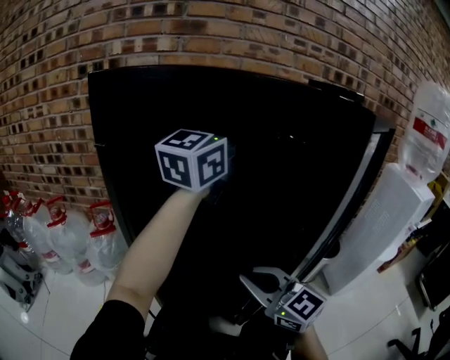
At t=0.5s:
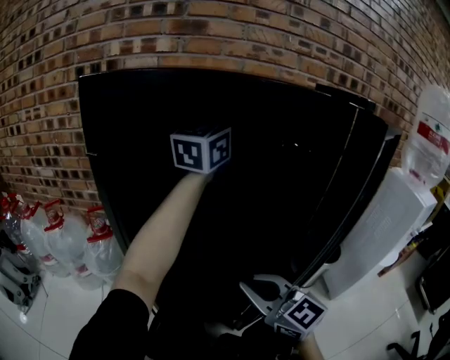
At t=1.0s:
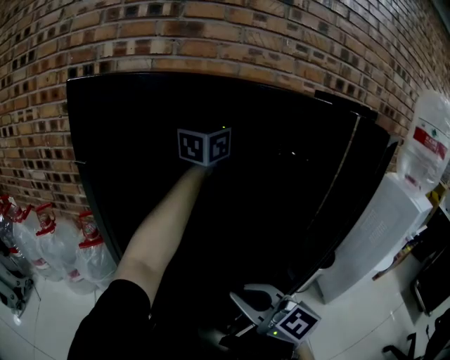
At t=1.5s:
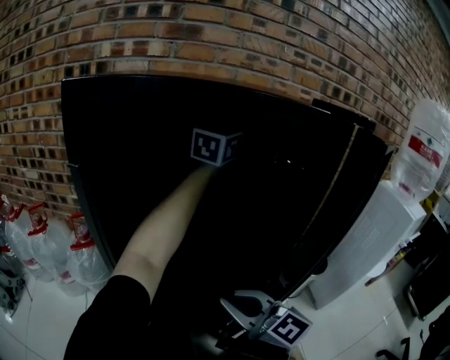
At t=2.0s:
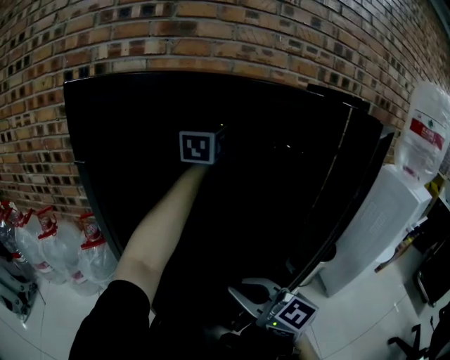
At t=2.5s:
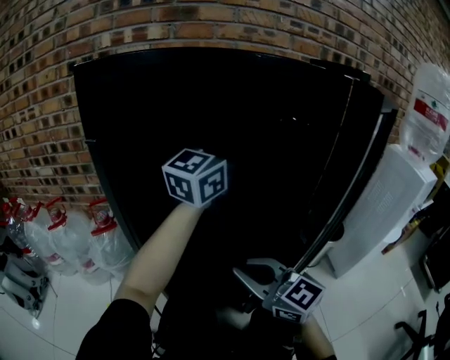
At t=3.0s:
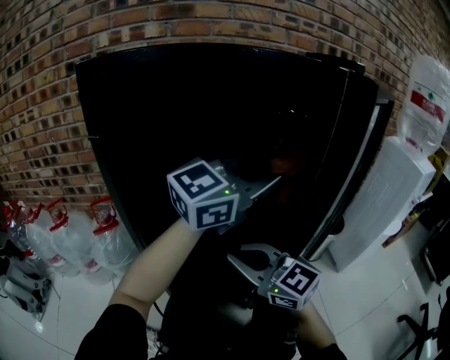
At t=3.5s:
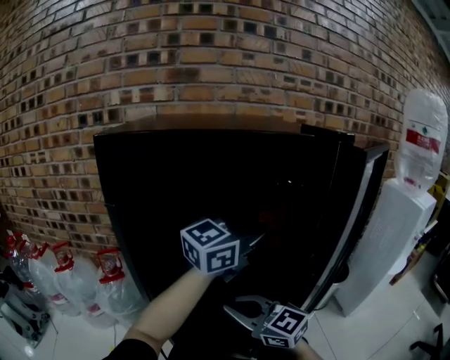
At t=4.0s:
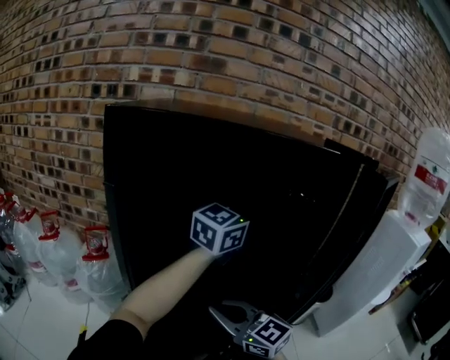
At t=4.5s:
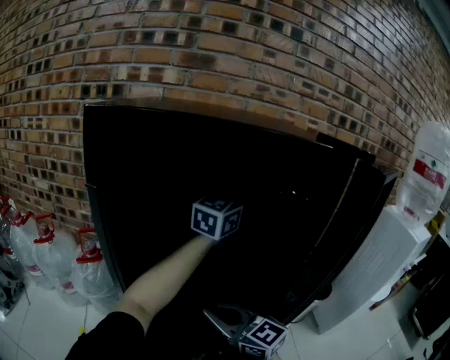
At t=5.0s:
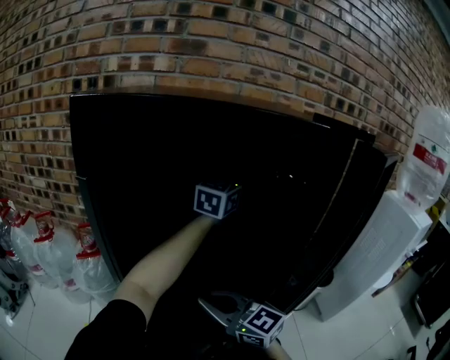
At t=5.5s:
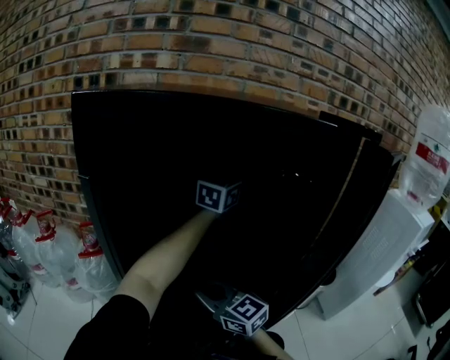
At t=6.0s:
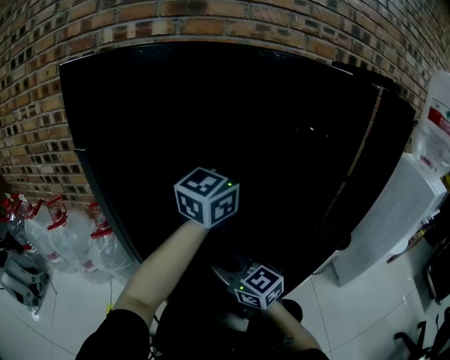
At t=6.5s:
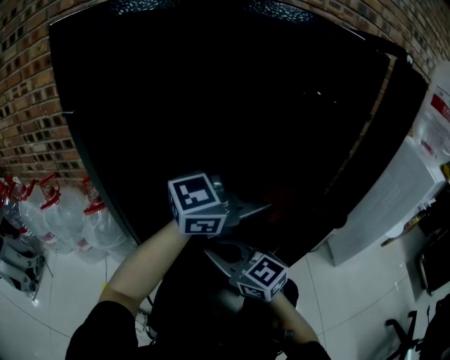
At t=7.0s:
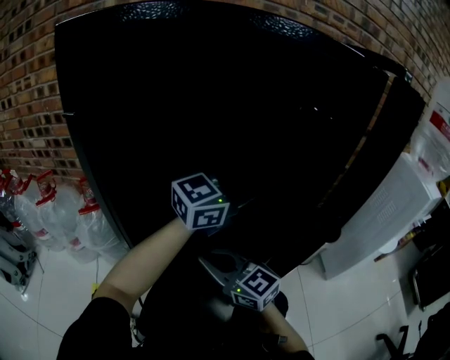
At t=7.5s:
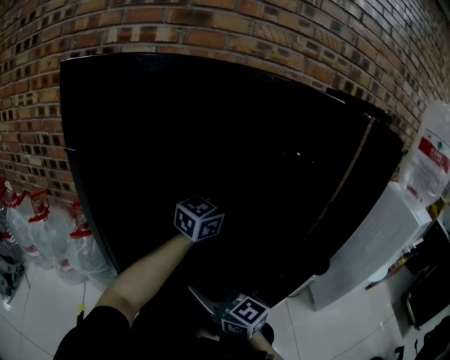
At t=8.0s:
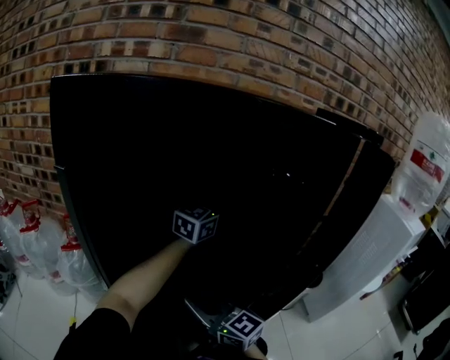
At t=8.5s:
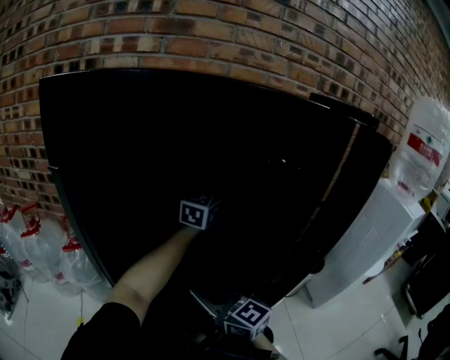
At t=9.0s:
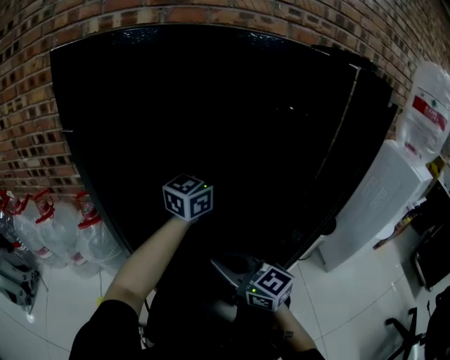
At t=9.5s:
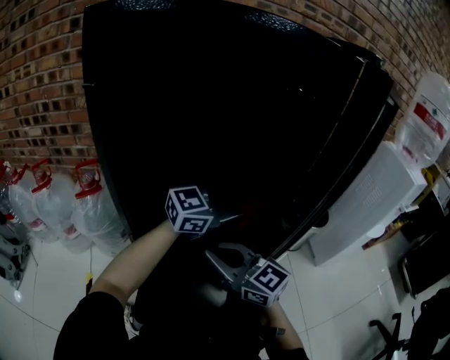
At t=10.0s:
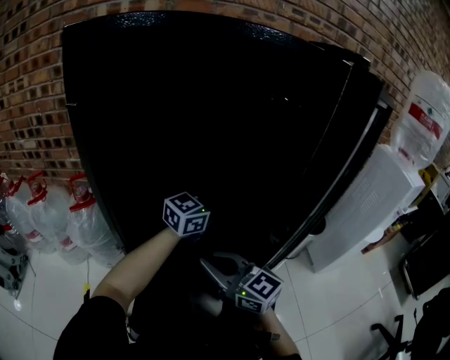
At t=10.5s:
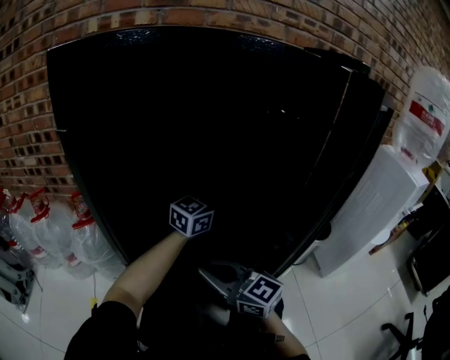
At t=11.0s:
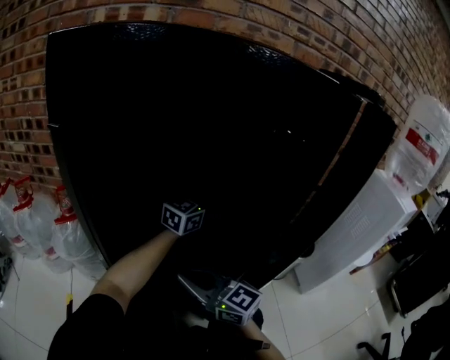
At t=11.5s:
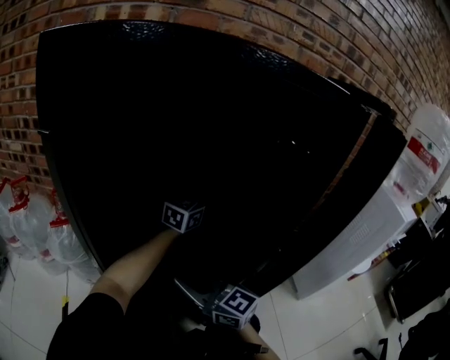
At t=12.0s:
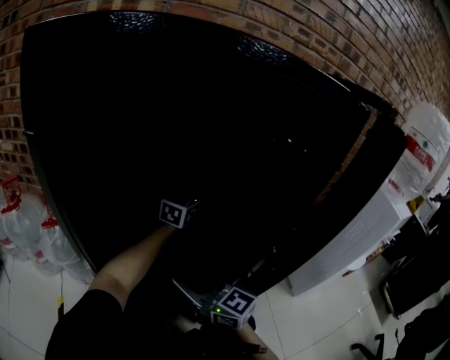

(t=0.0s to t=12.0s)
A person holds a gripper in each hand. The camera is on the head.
t=0.0s - t=2.0s: The left gripper travels forward by approximately 15 cm.
t=2.0s - t=4.0s: The right gripper moves some 5 cm; the left gripper shifts roughly 15 cm backward, downward and to the right, and swivels approximately 30 degrees.
t=4.0s - t=6.0s: The left gripper reaches roughly 15 cm forward, then returns. Meanwhile the right gripper travels forward by roughly 5 cm.
t=6.0s - t=8.0s: The left gripper ends up some 15 cm from where it was.
t=8.0s - t=10.0s: The left gripper moves roughly 20 cm. The right gripper shifts by some 5 cm.
t=10.0s - t=12.0s: The right gripper moves forward, about 5 cm, while the left gripper heads forward, covering about 20 cm, and rotates roughly 30 degrees.

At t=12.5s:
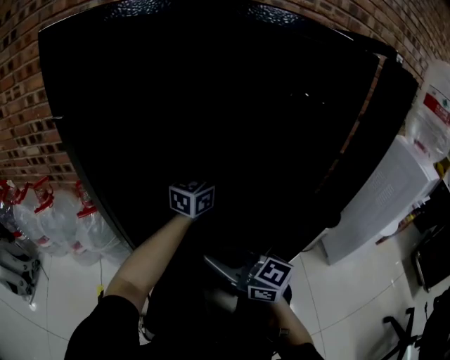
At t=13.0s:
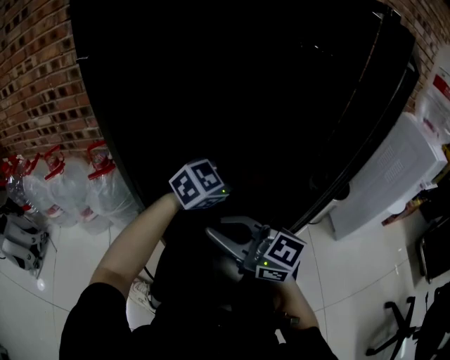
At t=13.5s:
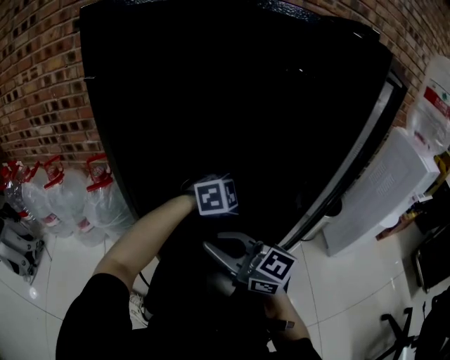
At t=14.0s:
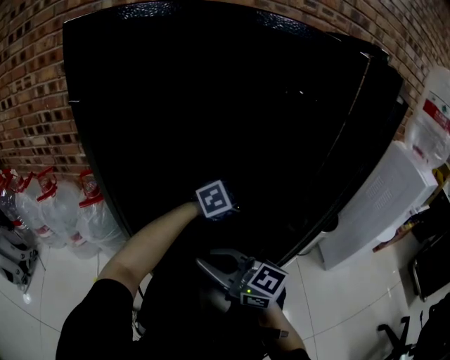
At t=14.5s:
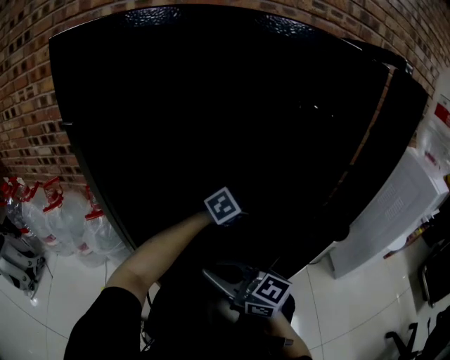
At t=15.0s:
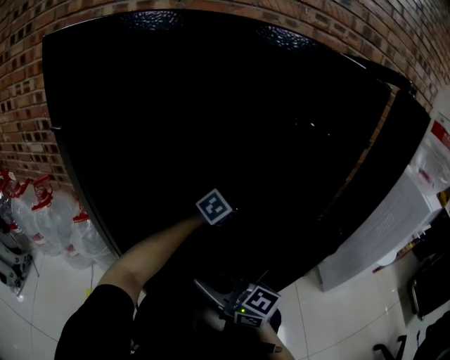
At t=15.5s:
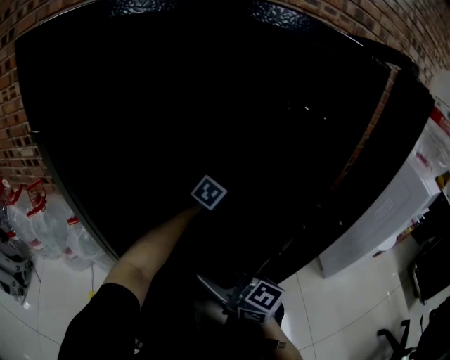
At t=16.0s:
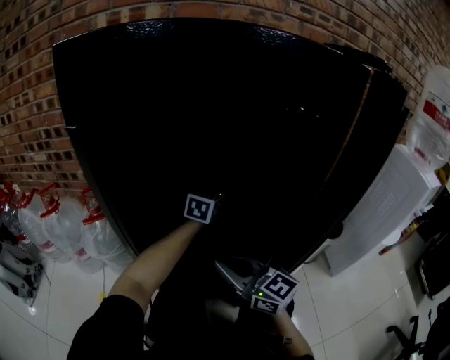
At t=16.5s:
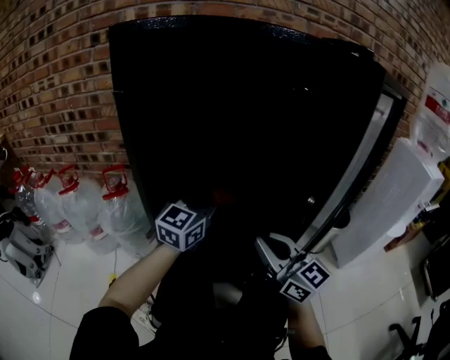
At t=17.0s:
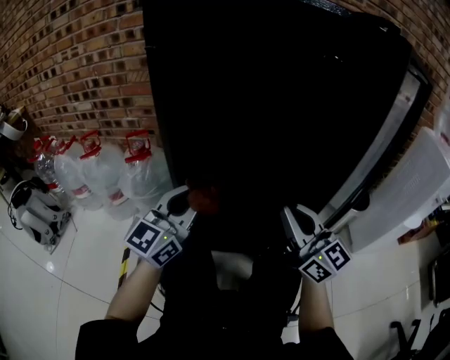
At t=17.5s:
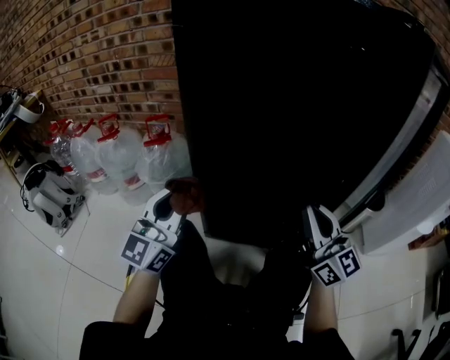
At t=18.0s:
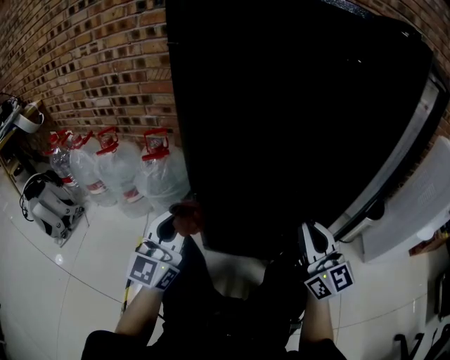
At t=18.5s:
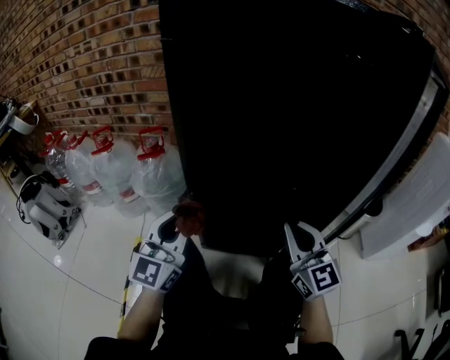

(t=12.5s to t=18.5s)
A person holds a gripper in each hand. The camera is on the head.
t=12.5s - t=14.5s: The left gripper shifts roughly 10 cm downward, and tilts its fingers approximately 40 degrees downward.
t=14.5s - t=16.5s: The left gripper moves to the left, backward and upward, approximately 20 cm, and tilts its fingers approximately 40 degrees upward. Meanwhile the right gripper goes approximately 10 cm to the right, and rotates about 20 degrees.
t=16.5s - t=18.5s: The right gripper changes place by about 5 cm. The left gripper travels to the left and backward by approximately 25 cm, and turns by some 20 degrees.

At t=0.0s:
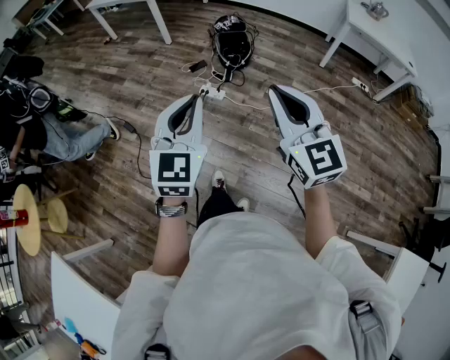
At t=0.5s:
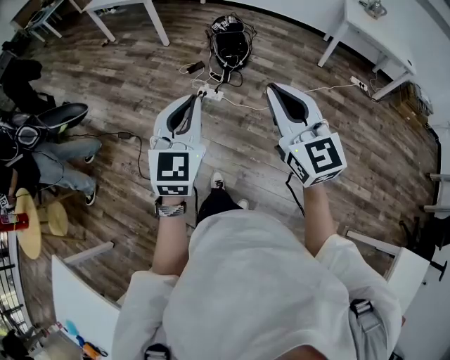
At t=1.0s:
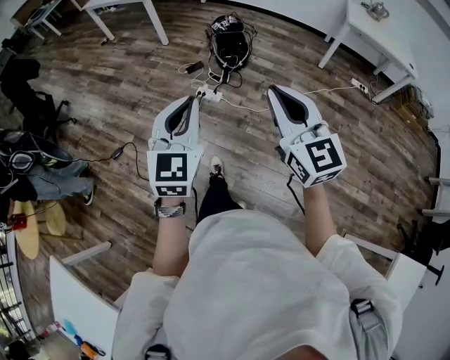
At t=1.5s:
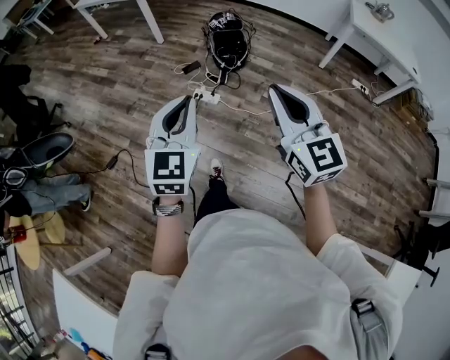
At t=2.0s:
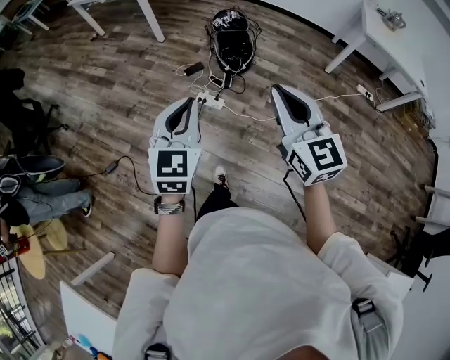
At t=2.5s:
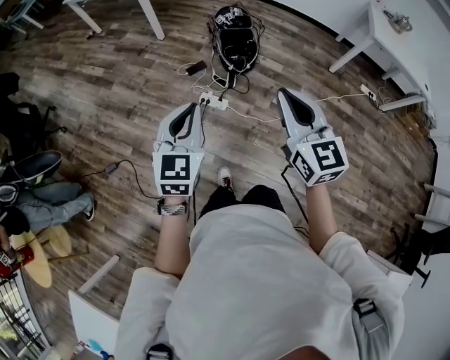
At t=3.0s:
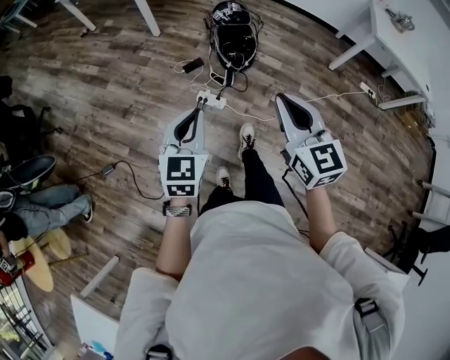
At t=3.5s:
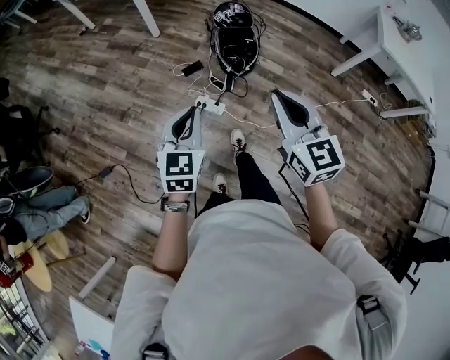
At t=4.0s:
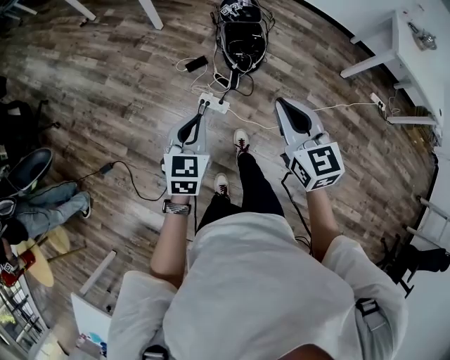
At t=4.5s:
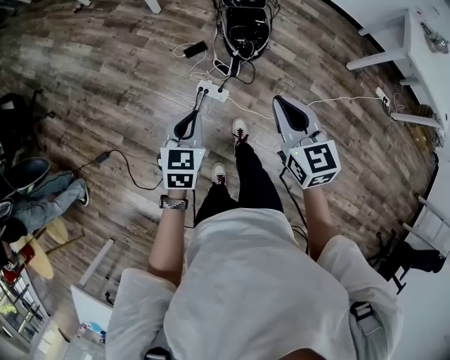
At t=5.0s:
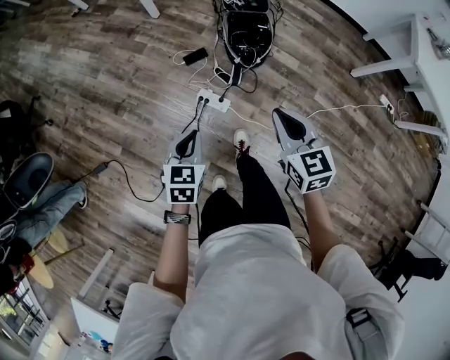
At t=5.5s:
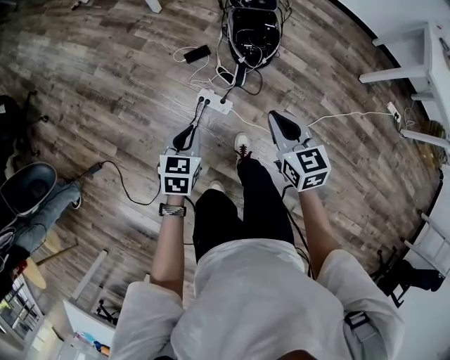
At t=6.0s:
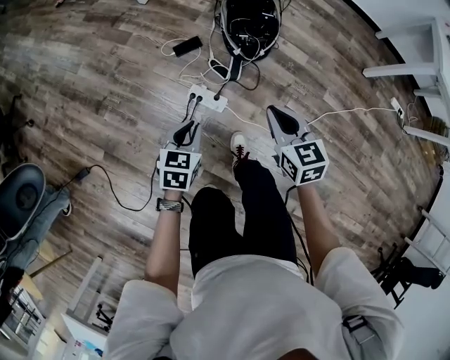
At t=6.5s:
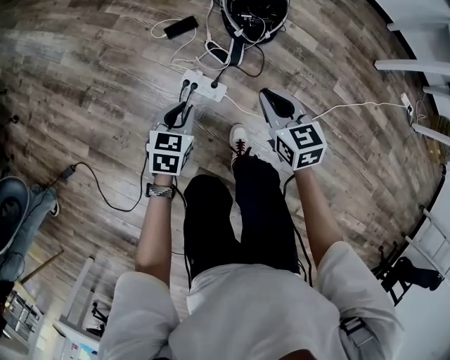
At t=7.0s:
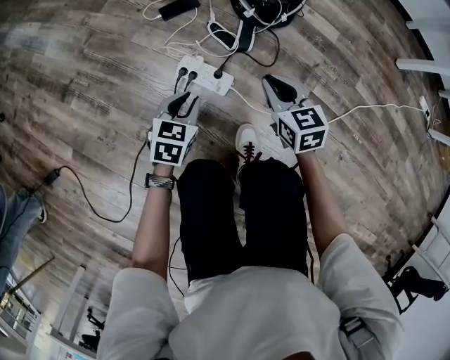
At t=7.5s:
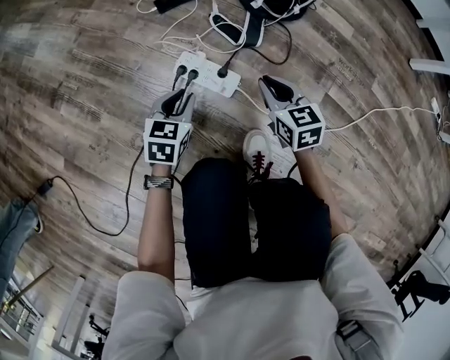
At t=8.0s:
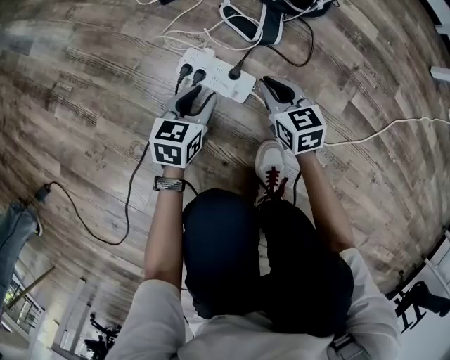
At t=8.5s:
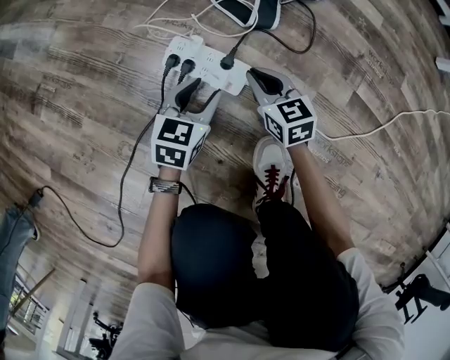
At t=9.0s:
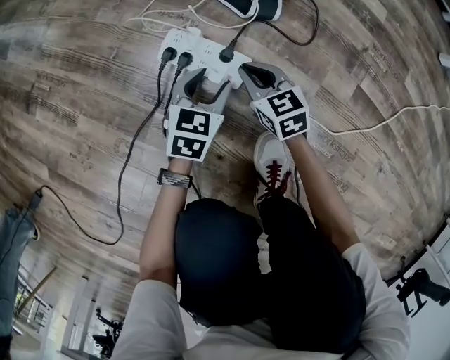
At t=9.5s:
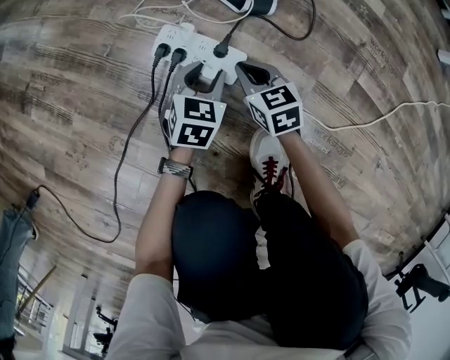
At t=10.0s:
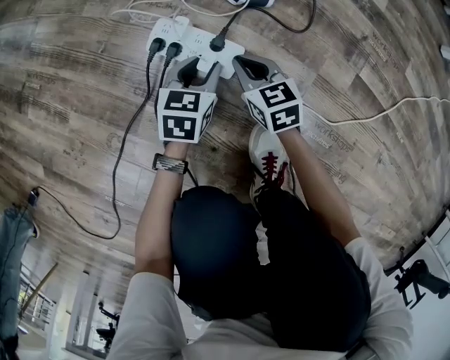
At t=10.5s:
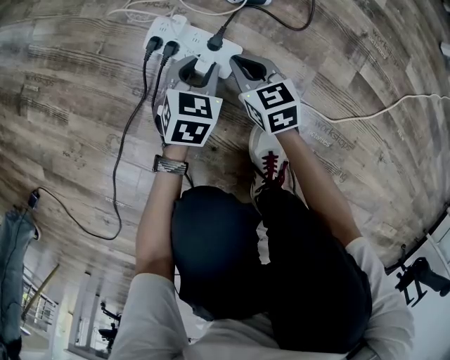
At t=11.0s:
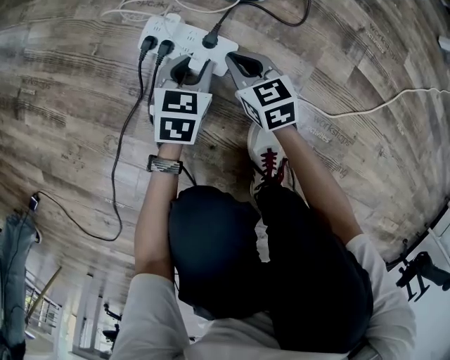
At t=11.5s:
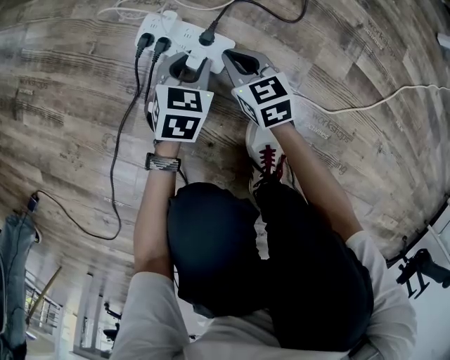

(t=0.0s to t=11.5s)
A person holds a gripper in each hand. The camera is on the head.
t=0.0s - t=2.0s: Both grippers move forward, roughly 25 cm.
t=2.0s - t=4.0s: The grippers both shift forward and downward by roughly 25 cm.
t=4.0s - t=6.0s: Both grippers travel together downward, some 35 cm.
t=6.0s - t=7.5s: Both grippers travel together downward, about 40 cm.
t=7.5s - t=9.5s: The left gripper shifts approximately 15 cm downward and to the right, and opens up. The right gripper heads downward, covering some 20 cm.
t=9.5s - t=11.5s: There are only small adjustments of the grippers.
